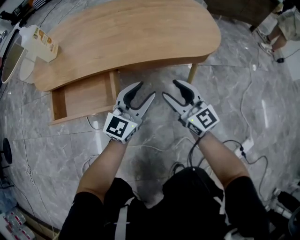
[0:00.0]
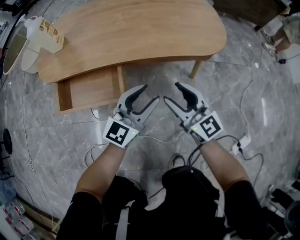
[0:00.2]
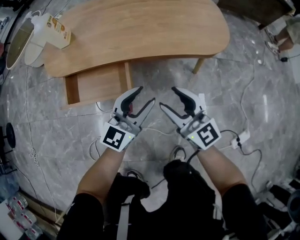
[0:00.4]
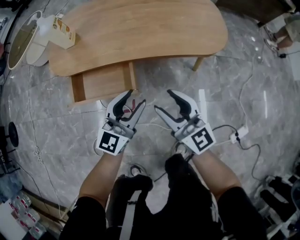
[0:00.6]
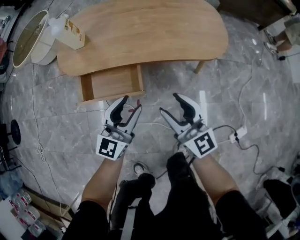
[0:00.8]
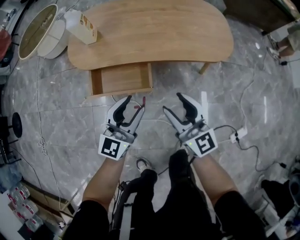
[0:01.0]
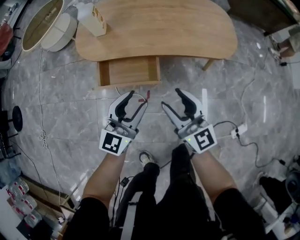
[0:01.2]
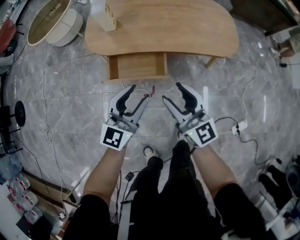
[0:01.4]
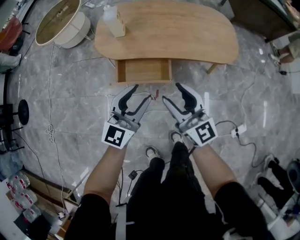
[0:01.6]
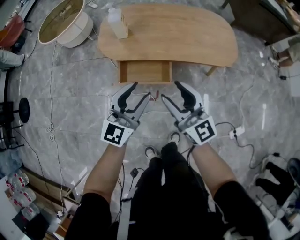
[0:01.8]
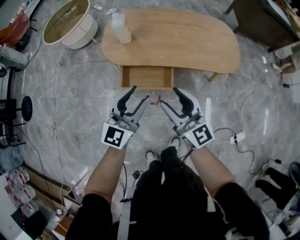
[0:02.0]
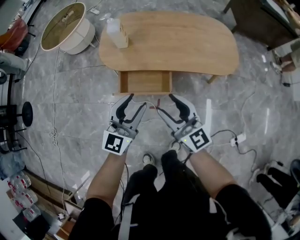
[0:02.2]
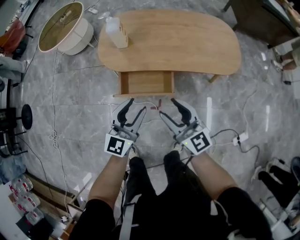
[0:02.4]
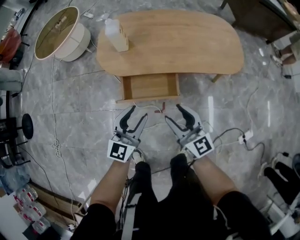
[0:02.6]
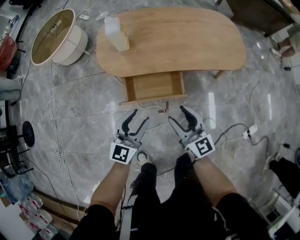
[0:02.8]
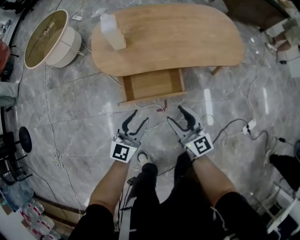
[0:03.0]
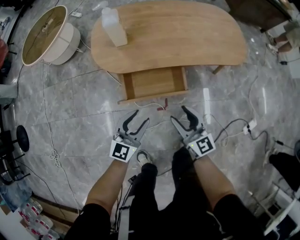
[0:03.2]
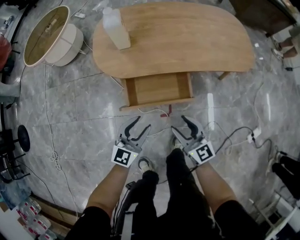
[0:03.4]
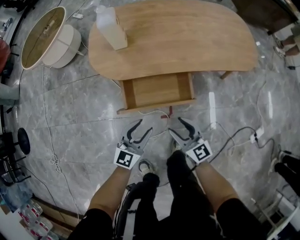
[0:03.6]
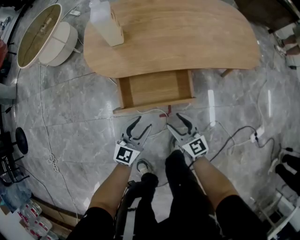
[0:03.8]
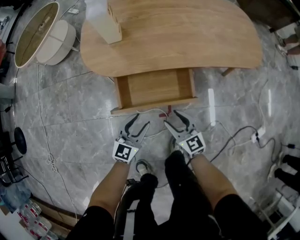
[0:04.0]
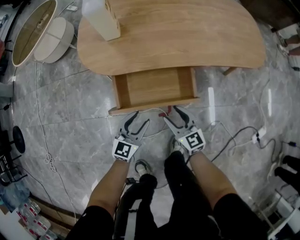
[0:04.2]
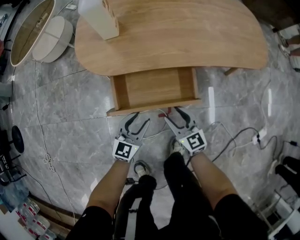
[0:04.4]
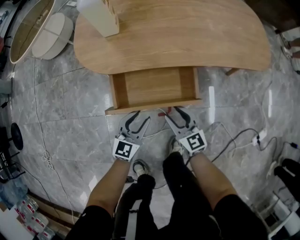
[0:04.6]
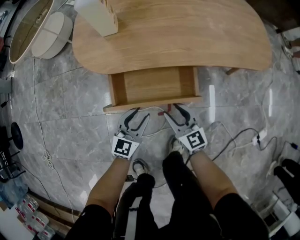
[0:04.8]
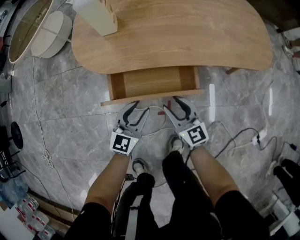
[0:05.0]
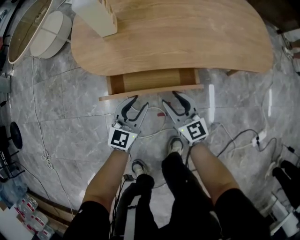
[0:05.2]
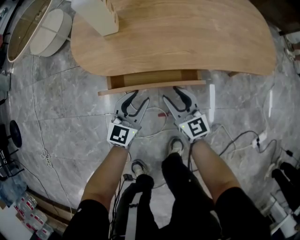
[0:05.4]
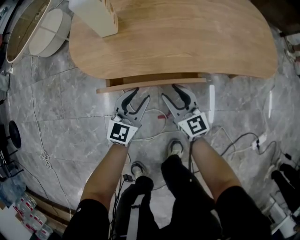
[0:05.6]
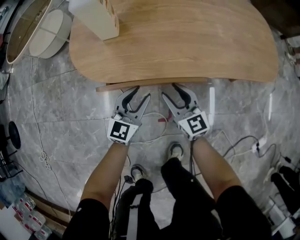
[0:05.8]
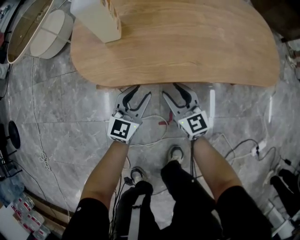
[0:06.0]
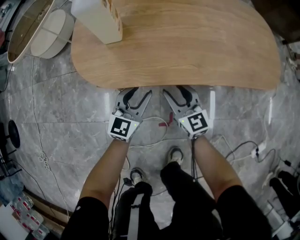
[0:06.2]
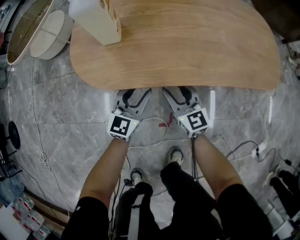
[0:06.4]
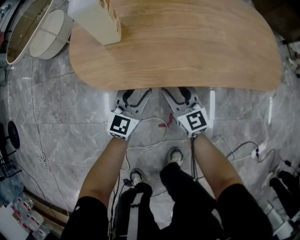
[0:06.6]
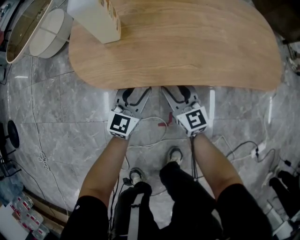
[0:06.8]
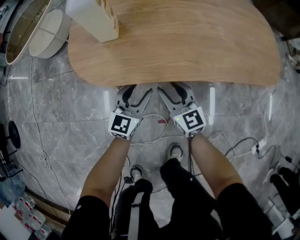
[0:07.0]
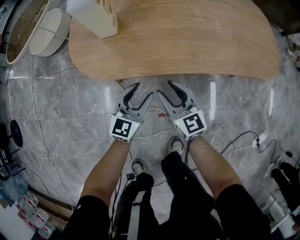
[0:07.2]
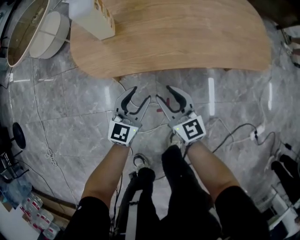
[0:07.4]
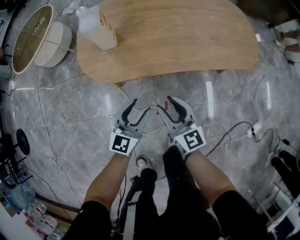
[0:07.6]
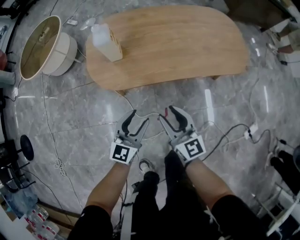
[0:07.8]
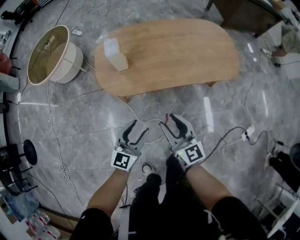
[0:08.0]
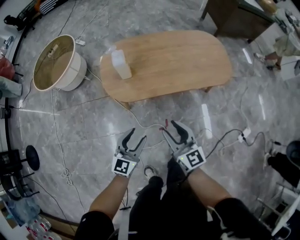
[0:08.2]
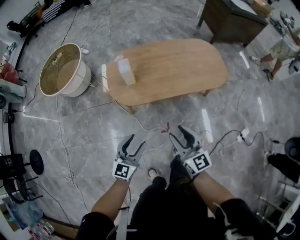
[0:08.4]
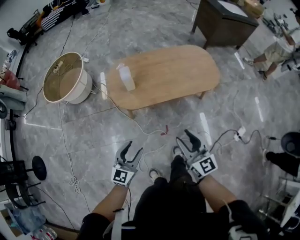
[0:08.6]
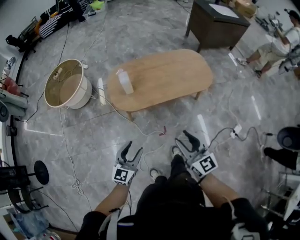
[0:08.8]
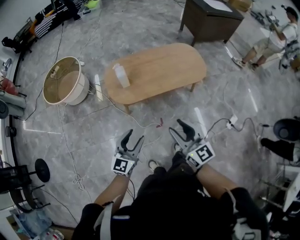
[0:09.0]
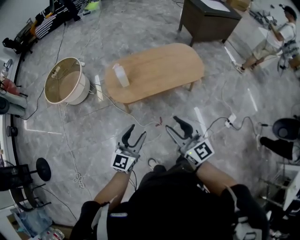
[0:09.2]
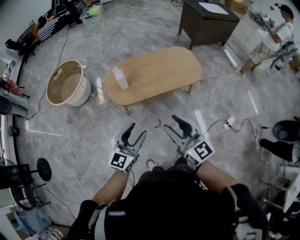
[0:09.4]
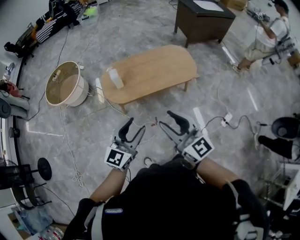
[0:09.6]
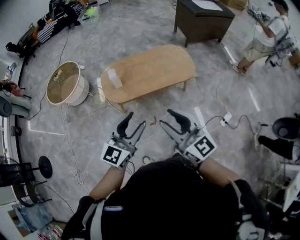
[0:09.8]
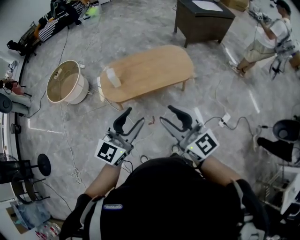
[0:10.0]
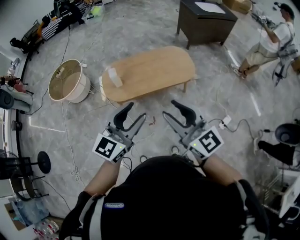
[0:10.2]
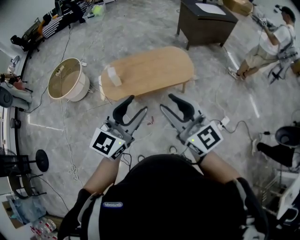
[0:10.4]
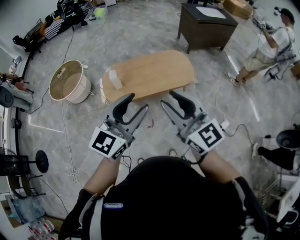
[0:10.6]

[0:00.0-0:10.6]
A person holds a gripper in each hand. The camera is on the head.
0:00.0 to 0:01.6: The left gripper goes about 40 cm upward, to the left and backward. Meanwhile the right gripper shifts about 40 cm upward and to the left.
0:01.6 to 0:03.0: The left gripper is displaced downward and to the left by some 20 cm. Meanwhile the right gripper moves downward, some 15 cm.
0:03.0 to 0:04.6: Both grippers travel together downward, approximately 25 cm.
0:04.6 to 0:06.0: Both grippers move forward, some 15 cm.
0:06.0 to 0:07.6: Both grippers move upward and backward, roughly 15 cm.
0:07.6 to 0:09.0: The grippers both shift upward and backward by some 40 cm.
0:09.0 to 0:10.6: The left gripper heads upward and to the right, covering about 35 cm. The right gripper moves upward, approximately 25 cm.

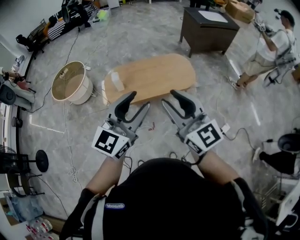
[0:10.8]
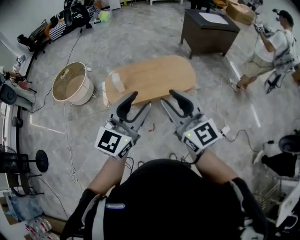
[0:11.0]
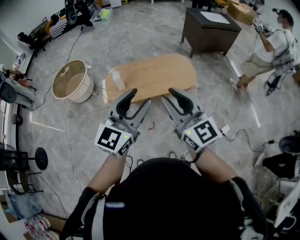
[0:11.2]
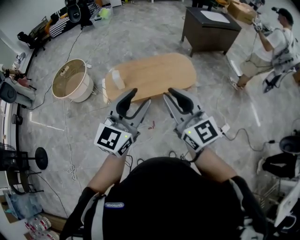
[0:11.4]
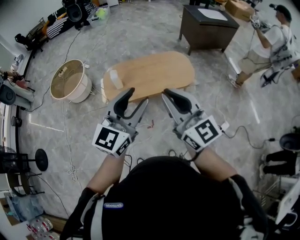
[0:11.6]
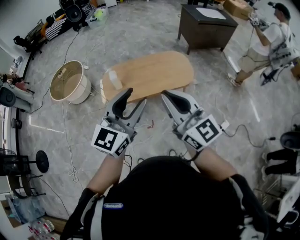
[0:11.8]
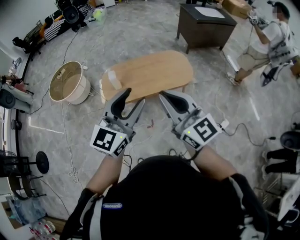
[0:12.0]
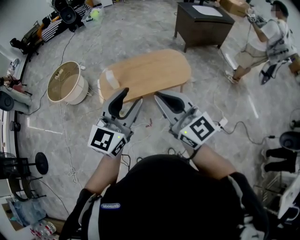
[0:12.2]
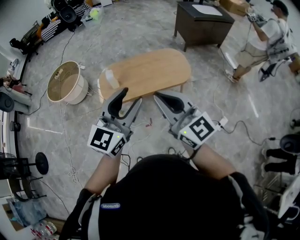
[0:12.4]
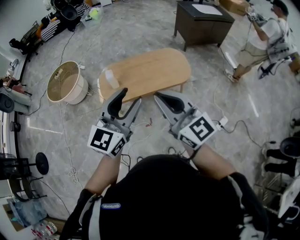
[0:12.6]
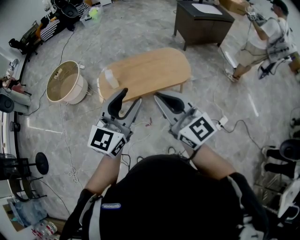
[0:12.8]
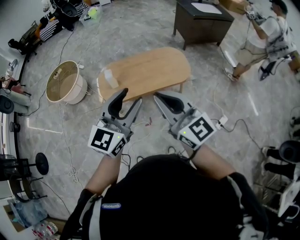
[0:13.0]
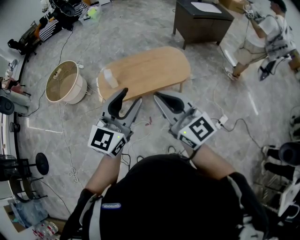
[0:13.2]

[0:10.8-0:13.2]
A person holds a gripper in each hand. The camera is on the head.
0:10.8 to 0:12.0: The right gripper closes up.
0:12.0 to 0:13.2: The grippers stay close to where they were, moving slightly.

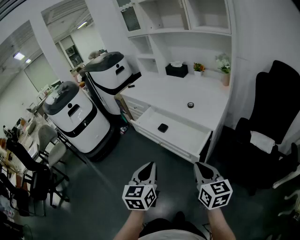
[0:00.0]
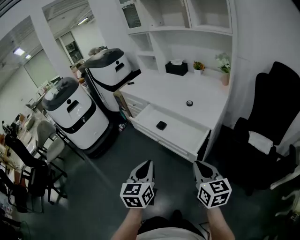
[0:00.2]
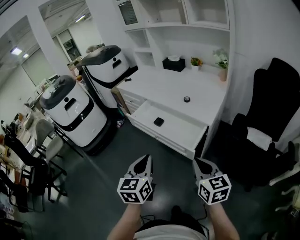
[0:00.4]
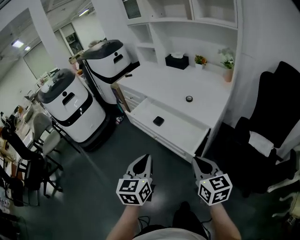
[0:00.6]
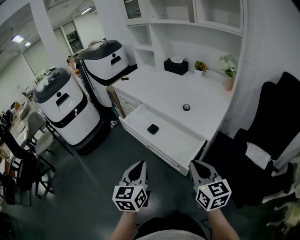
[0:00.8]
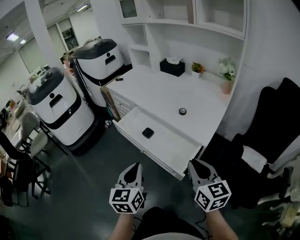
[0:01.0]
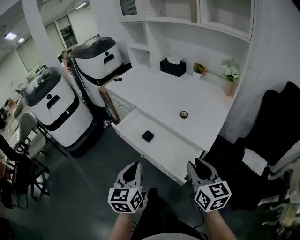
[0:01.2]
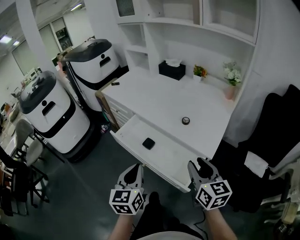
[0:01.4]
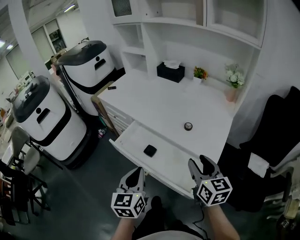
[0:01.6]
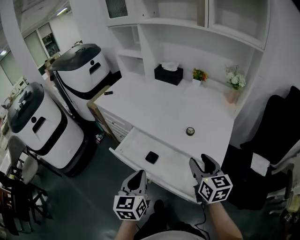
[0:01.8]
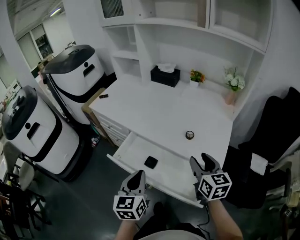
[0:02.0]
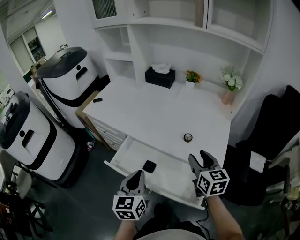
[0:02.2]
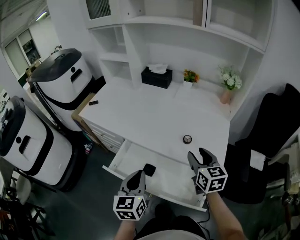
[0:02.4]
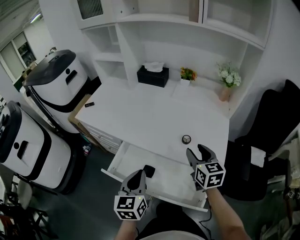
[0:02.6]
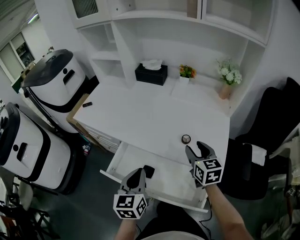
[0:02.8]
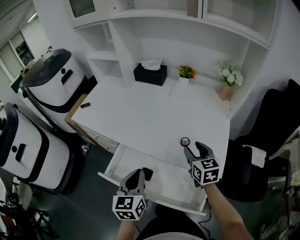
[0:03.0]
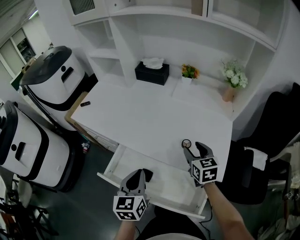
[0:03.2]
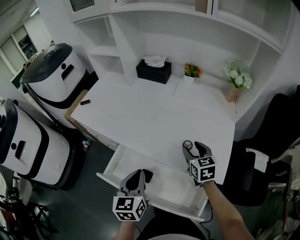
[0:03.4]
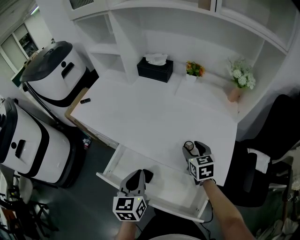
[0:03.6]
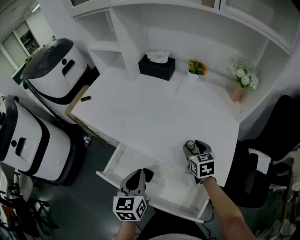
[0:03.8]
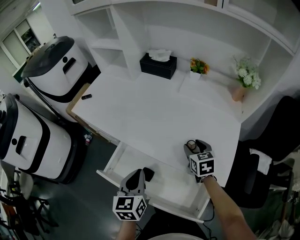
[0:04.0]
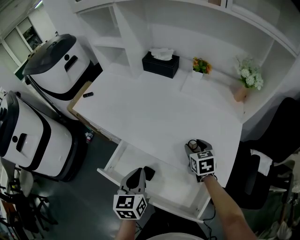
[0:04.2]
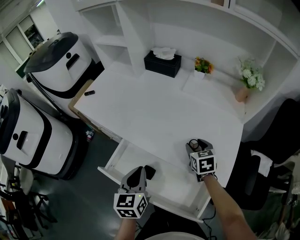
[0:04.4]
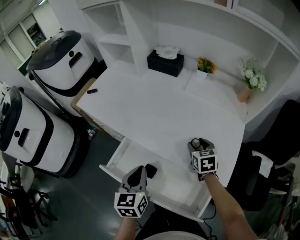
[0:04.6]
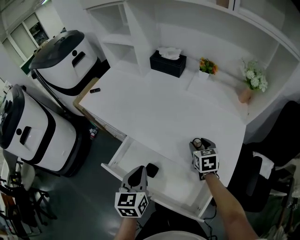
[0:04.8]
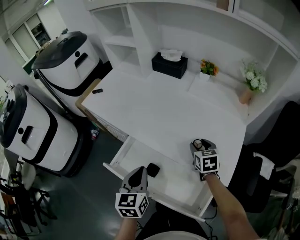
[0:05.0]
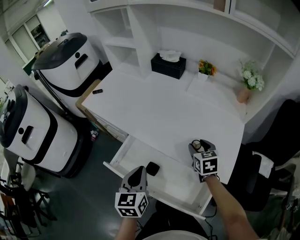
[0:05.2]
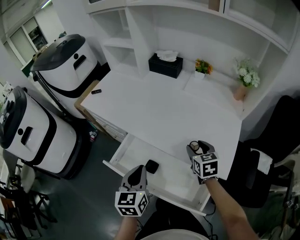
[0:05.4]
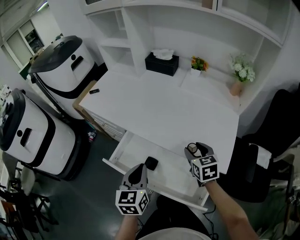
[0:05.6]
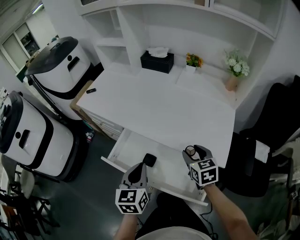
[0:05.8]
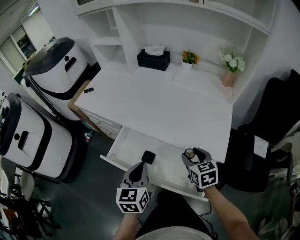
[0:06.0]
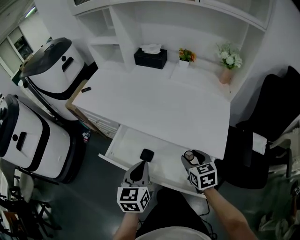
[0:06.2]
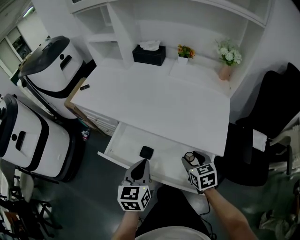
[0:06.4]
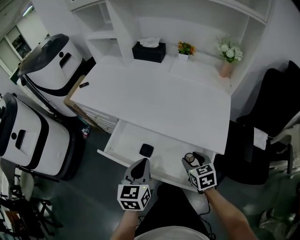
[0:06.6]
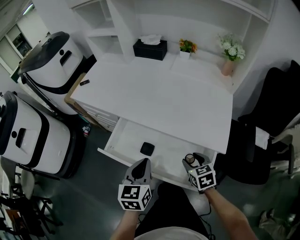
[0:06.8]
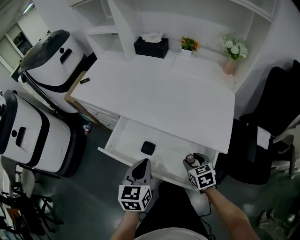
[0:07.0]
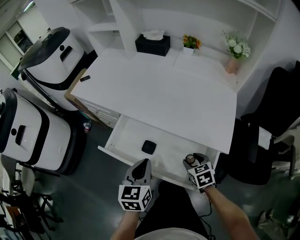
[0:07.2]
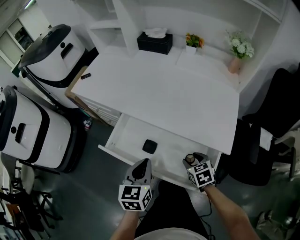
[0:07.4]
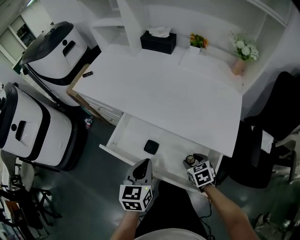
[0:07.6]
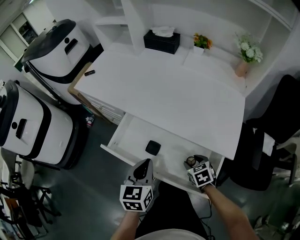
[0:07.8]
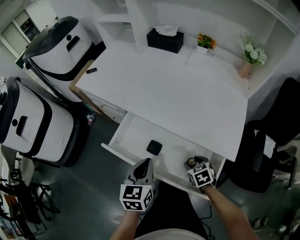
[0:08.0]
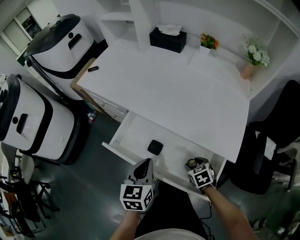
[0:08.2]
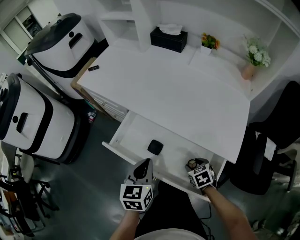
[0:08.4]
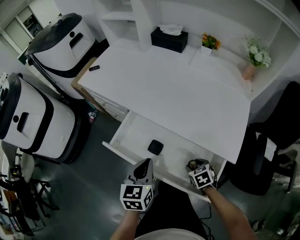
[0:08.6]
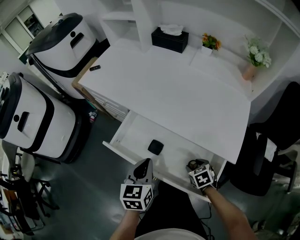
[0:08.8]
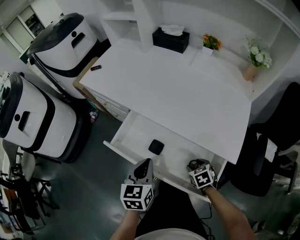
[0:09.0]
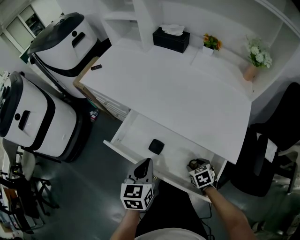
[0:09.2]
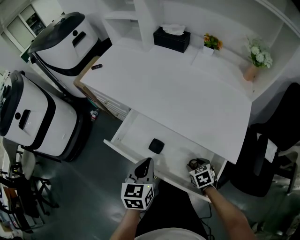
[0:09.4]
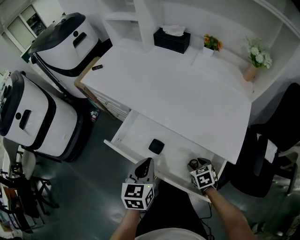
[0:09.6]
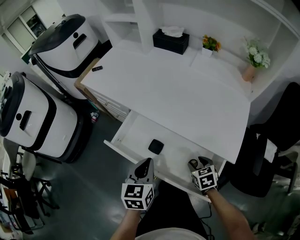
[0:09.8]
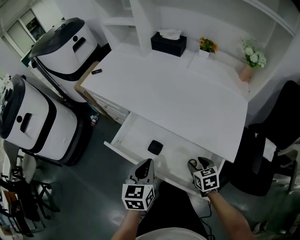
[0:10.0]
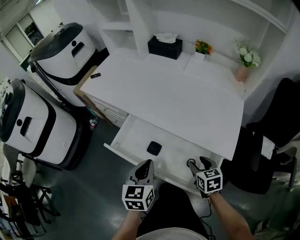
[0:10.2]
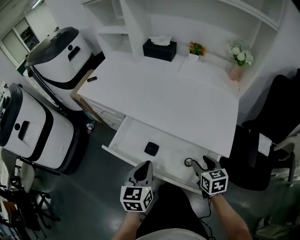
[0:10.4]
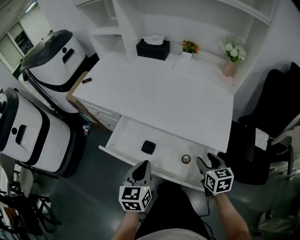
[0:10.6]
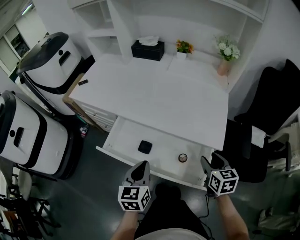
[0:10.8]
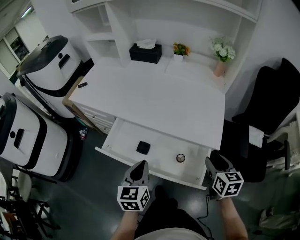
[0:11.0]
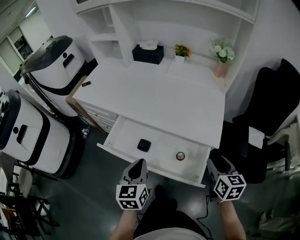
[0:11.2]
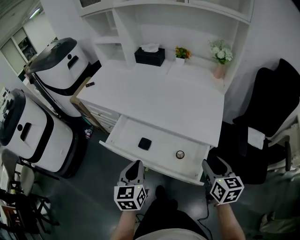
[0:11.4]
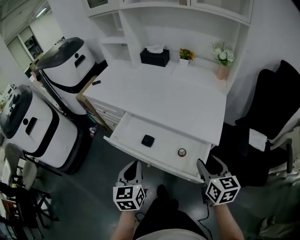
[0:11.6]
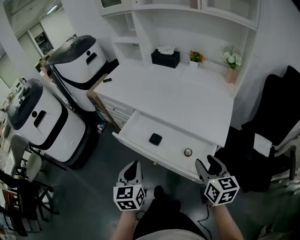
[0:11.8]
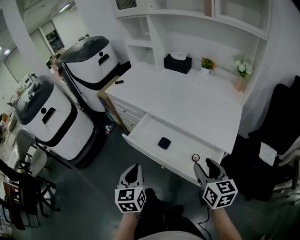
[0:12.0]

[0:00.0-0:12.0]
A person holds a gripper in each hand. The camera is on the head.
0:00.0 to 0:01.6: Both grippers move forward, some 25 cm. The right gripper opens up.
0:01.6 to 0:03.0: Both grippers travel together forward, approximately 20 cm.
0:03.0 to 0:04.4: The right gripper goes some 10 cm downward and forward.
0:04.4 to 0:06.0: The left gripper is displaced backward by about 5 cm. The right gripper shifts roughly 15 cm backward.
0:06.0 to 0:07.6: The right gripper heads downward, covering some 15 cm.
0:07.6 to 0:09.0: The grippers stay close to where they were, moving slightly.
0:09.0 to 0:10.4: The right gripper travels upward by some 15 cm, and swivels some 30 degrees.
0:10.4 to 0:12.0: The left gripper travels backward, to the left and upward by some 15 cm. The right gripper goes about 15 cm upward and backward, and swivels about 20 degrees.
